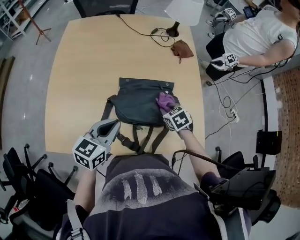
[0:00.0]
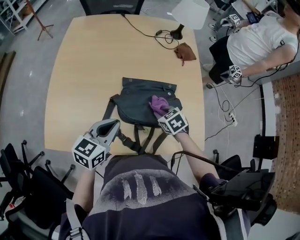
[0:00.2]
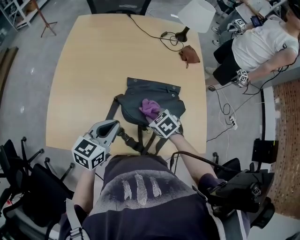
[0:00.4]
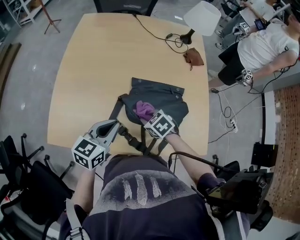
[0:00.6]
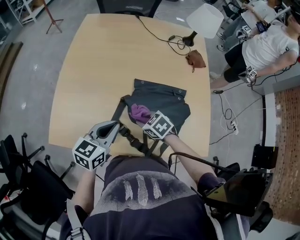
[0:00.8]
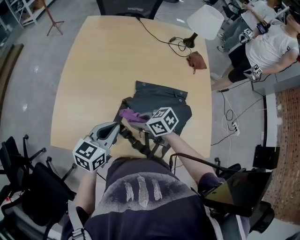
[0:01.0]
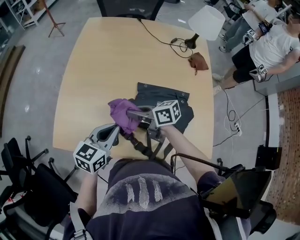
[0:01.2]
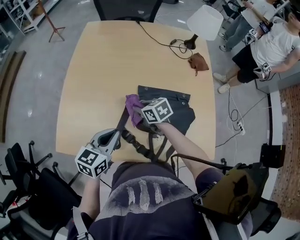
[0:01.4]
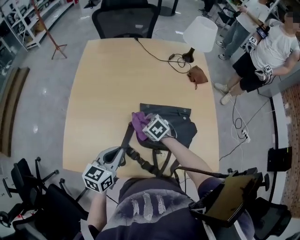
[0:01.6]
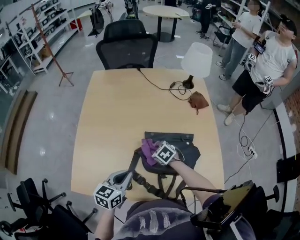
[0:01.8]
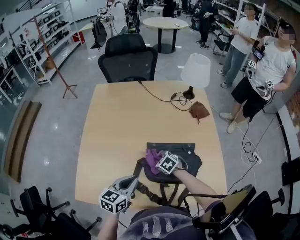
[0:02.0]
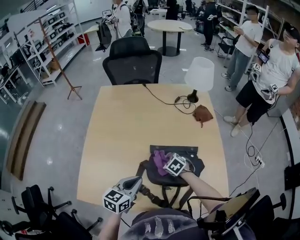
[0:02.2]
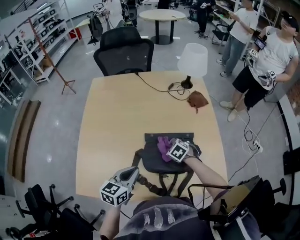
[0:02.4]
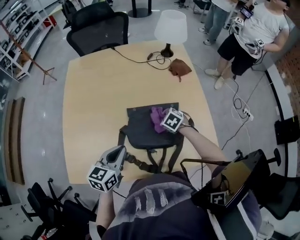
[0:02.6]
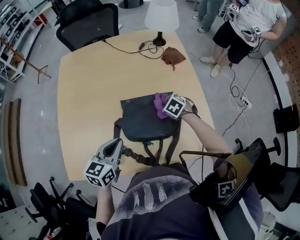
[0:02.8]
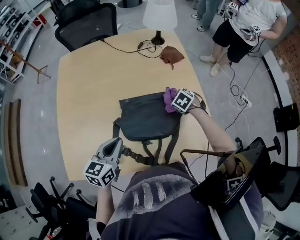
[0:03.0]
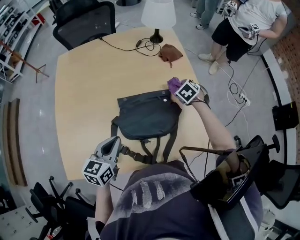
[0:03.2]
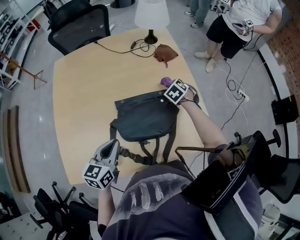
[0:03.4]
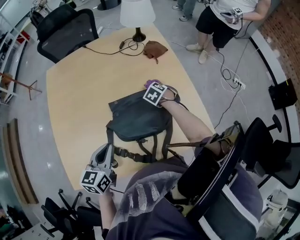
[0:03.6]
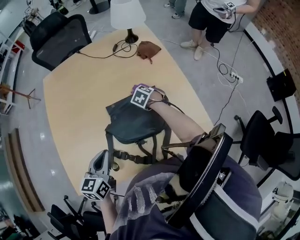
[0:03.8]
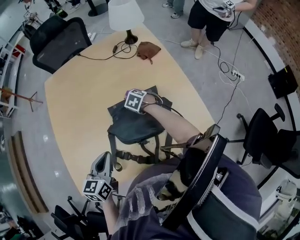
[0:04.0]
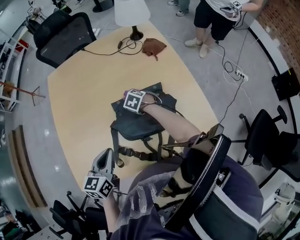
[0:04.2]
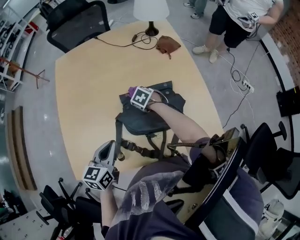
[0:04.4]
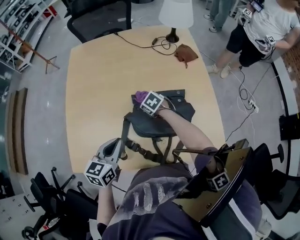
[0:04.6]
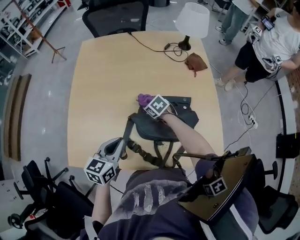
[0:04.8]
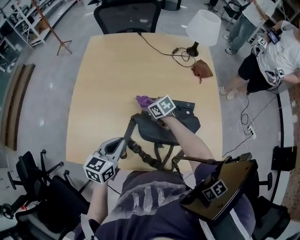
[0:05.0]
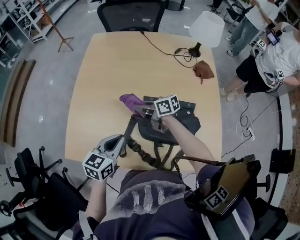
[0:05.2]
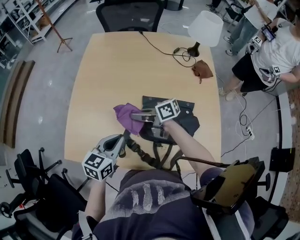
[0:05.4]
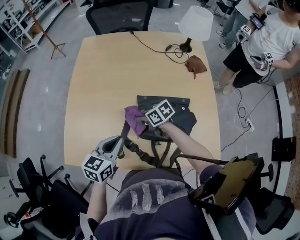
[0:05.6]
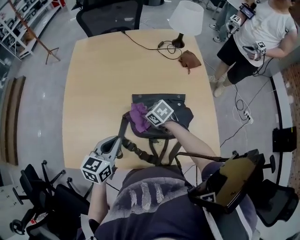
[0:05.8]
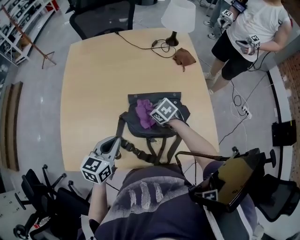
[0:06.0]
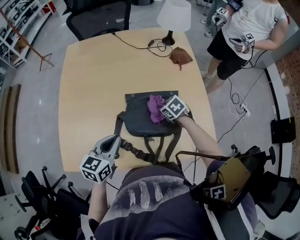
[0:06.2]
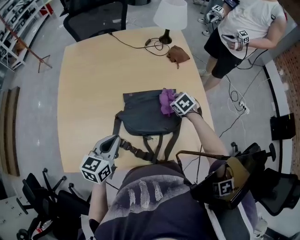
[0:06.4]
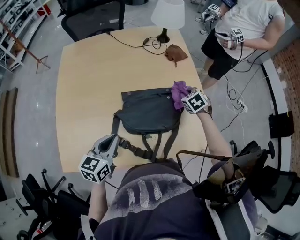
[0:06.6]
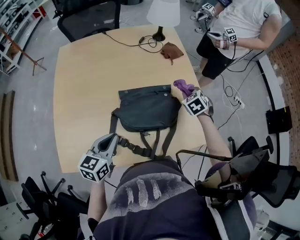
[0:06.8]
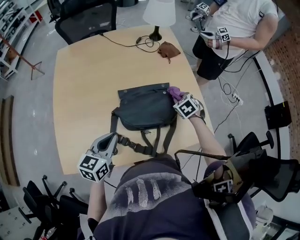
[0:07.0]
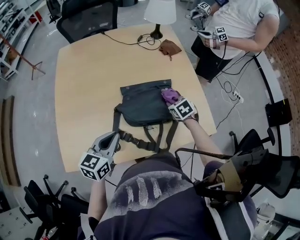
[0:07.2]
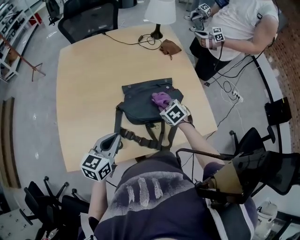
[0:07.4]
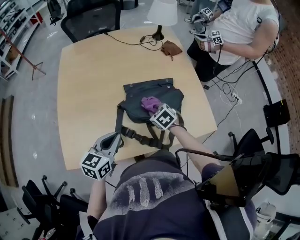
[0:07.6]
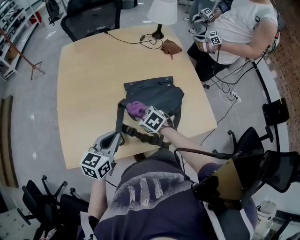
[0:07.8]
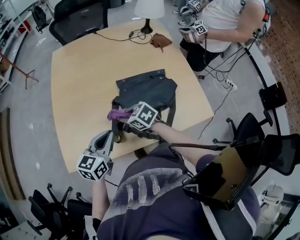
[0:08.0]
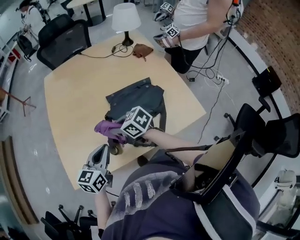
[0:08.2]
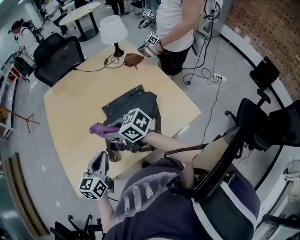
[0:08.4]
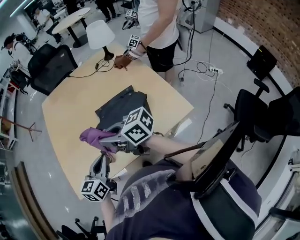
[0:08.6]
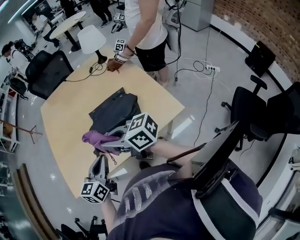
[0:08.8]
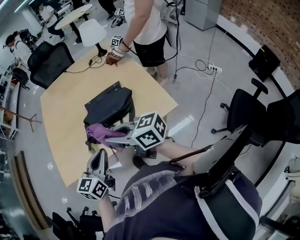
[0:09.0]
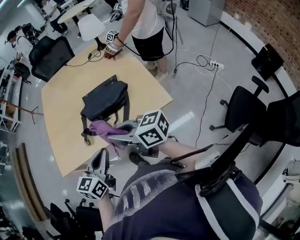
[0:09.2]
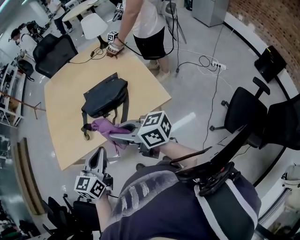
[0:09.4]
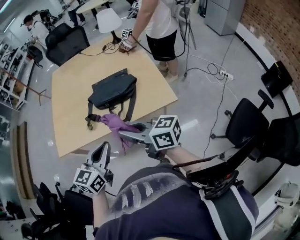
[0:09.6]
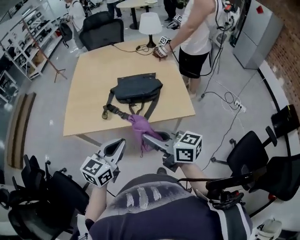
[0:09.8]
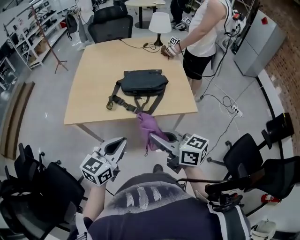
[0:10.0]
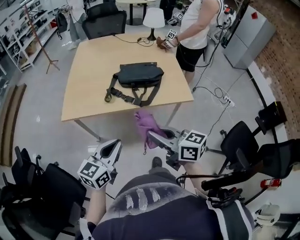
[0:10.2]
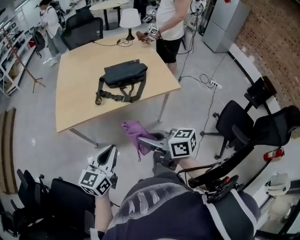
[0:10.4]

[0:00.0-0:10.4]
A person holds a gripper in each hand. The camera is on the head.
0:00.0 to 0:01.4: The right gripper reaches about 10 cm upward, then returns, and turns by roughly 30 degrees. The left gripper changes place by approximately 10 cm.
0:01.4 to 0:03.0: The right gripper changes place by roughly 30 cm, and rotates about 40 degrees. The left gripper ends up about 10 cm from where it was.
0:03.0 to 0:04.4: The right gripper ends up roughly 20 cm from where it was.
0:04.4 to 0:06.0: The right gripper is displaced backward by roughly 5 cm, and goes to the left and returns, about 15 cm each way.
0:06.0 to 0:07.4: The left gripper shifts by roughly 5 cm. Meanwhile the right gripper goes upward and returns, roughly 10 cm each way, and turns by roughly 20 degrees.
0:07.4 to 0:09.0: The right gripper shifts about 35 cm upward and backward, and tips its fingers upward by some 60 degrees. Meanwhile the left gripper moves backward, to the right and upward, about 20 cm.
0:09.0 to 0:10.4: The grippers both shift backward and to the left by some 30 cm.

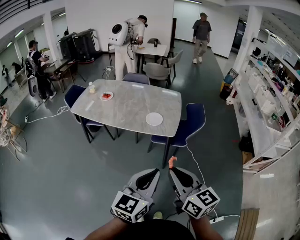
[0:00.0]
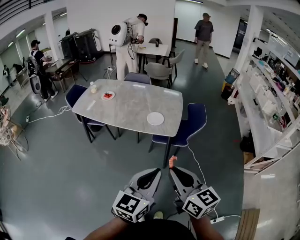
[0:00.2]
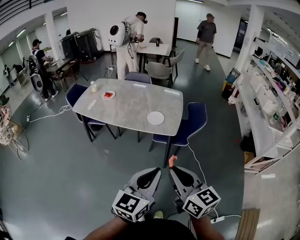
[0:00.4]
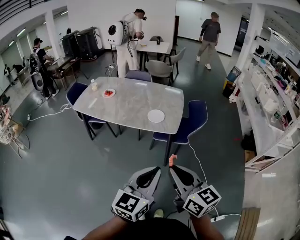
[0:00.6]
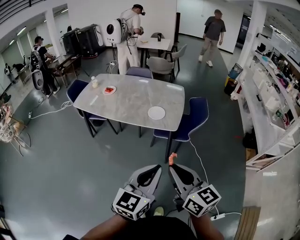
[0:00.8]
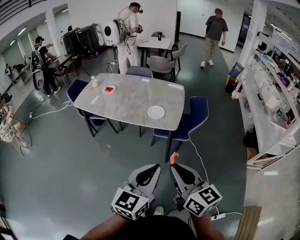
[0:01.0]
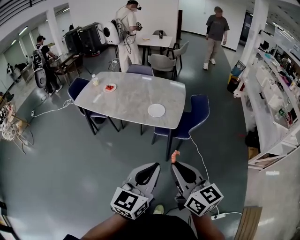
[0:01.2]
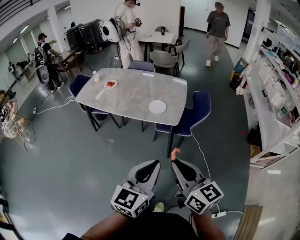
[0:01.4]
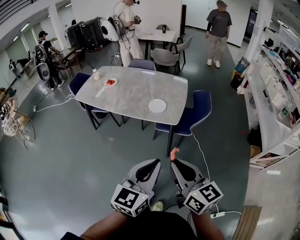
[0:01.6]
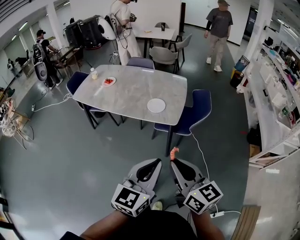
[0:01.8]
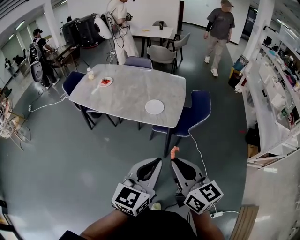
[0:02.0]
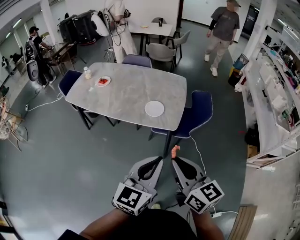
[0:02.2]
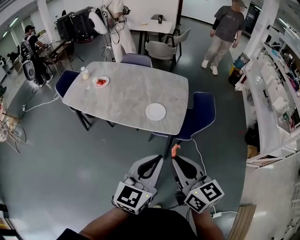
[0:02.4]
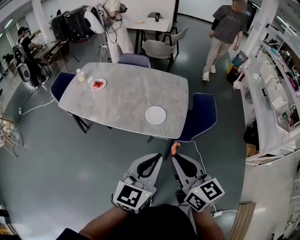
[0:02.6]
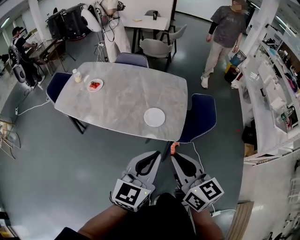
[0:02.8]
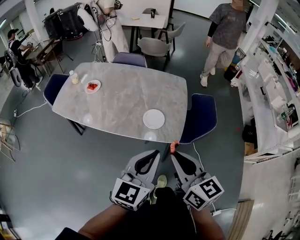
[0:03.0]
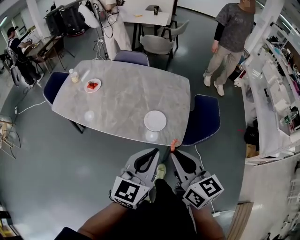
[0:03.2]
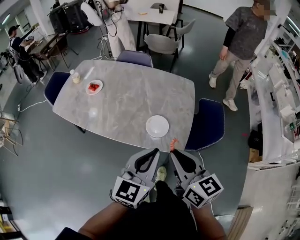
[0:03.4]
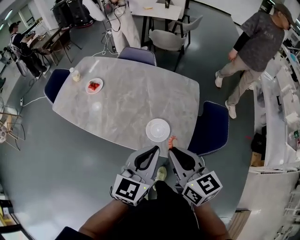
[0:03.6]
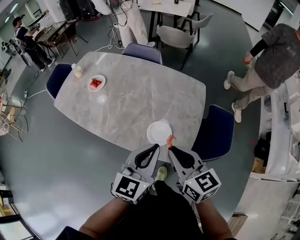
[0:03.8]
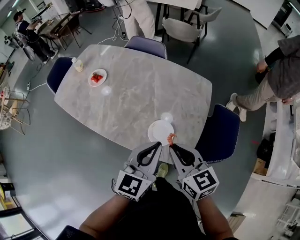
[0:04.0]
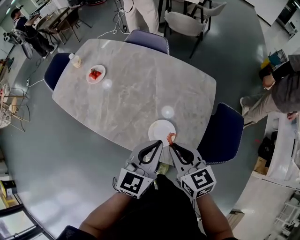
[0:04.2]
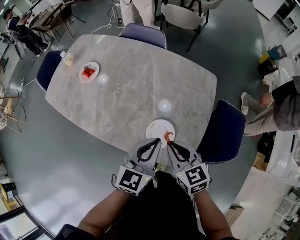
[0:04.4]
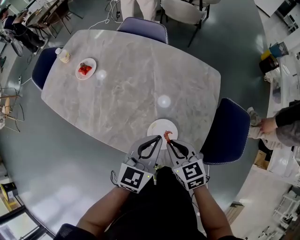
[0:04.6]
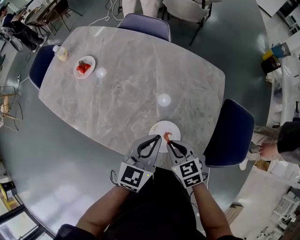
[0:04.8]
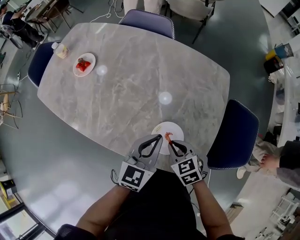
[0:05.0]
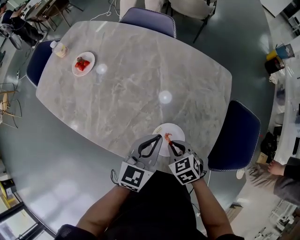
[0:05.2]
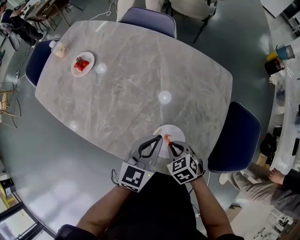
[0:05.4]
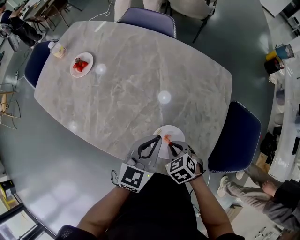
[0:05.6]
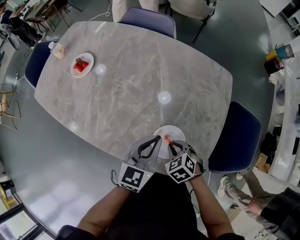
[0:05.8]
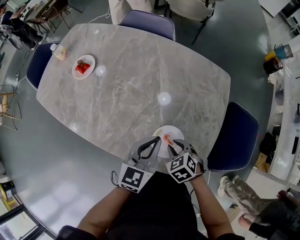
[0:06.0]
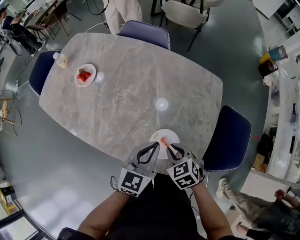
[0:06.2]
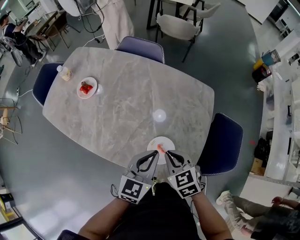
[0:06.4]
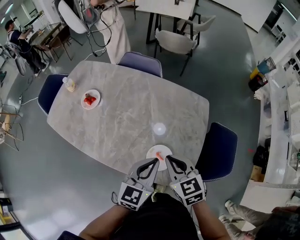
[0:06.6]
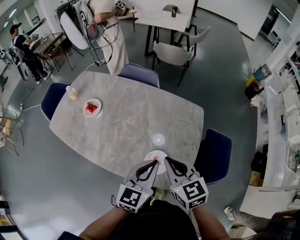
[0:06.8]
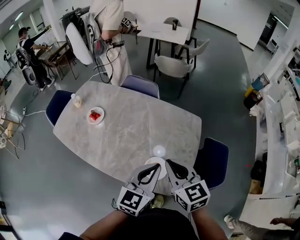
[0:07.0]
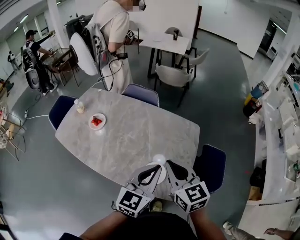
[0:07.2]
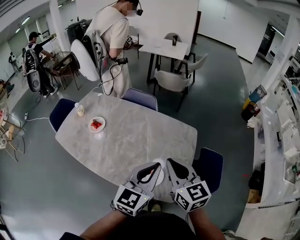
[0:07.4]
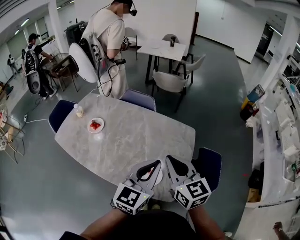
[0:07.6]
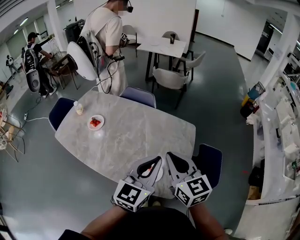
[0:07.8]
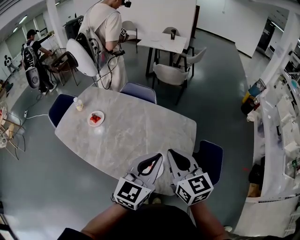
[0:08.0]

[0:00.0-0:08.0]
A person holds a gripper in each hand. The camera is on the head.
0:00.0 to 0:01.6: The grippers make only small movements.
0:01.6 to 0:03.2: Both grippers move forward, some 30 cm.
0:03.2 to 0:04.8: The right gripper travels downward and forward by approximately 40 cm, and points its fingers some 30 degrees further downward. The left gripper goes approximately 35 cm forward and downward.
0:04.8 to 0:06.4: The right gripper is displaced upward by some 10 cm. Meanwhile the left gripper moves upward, about 5 cm.
0:06.4 to 0:08.0: The two grippers go about 25 cm upward. The right gripper angles its fingers upward, by about 40 degrees.

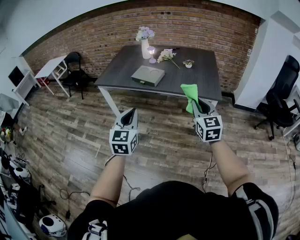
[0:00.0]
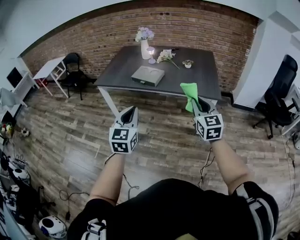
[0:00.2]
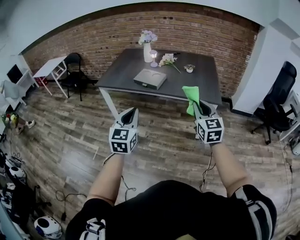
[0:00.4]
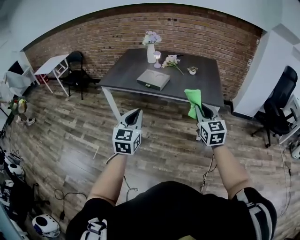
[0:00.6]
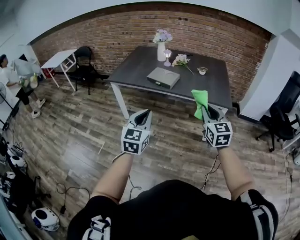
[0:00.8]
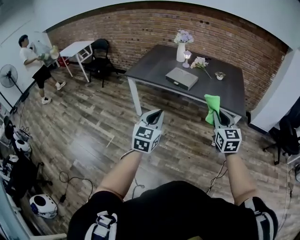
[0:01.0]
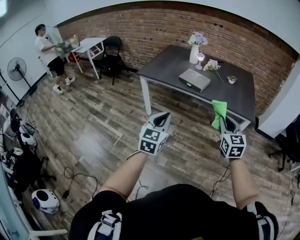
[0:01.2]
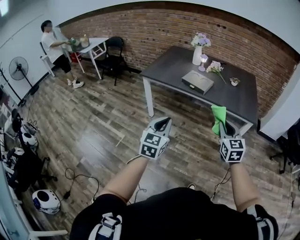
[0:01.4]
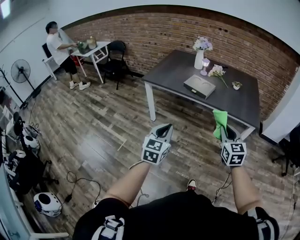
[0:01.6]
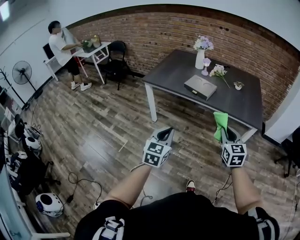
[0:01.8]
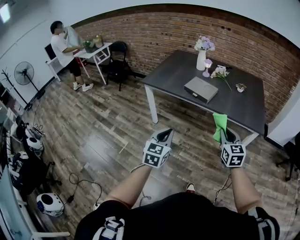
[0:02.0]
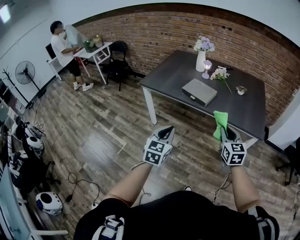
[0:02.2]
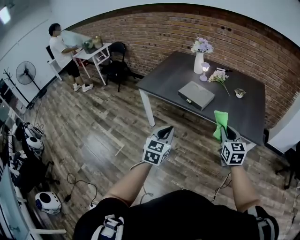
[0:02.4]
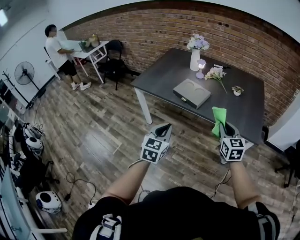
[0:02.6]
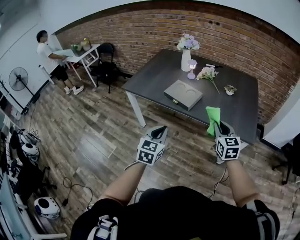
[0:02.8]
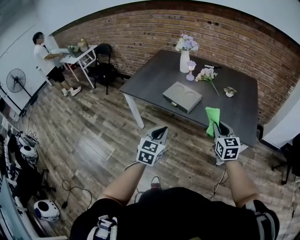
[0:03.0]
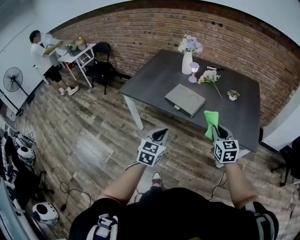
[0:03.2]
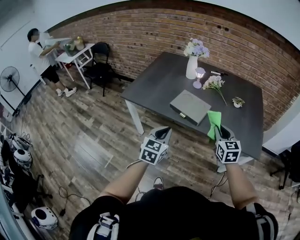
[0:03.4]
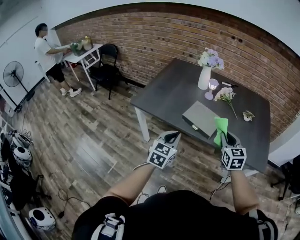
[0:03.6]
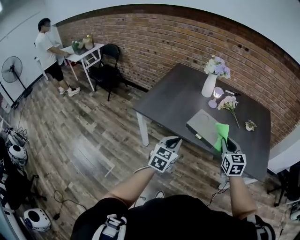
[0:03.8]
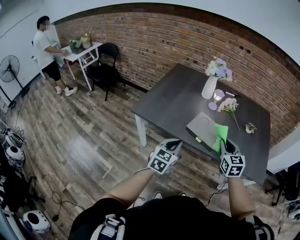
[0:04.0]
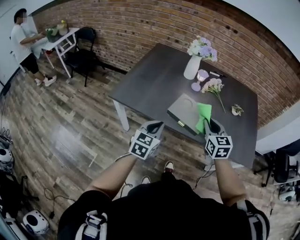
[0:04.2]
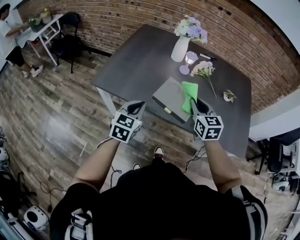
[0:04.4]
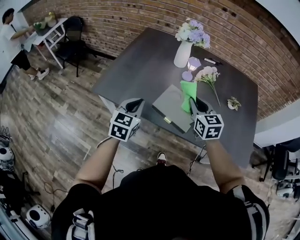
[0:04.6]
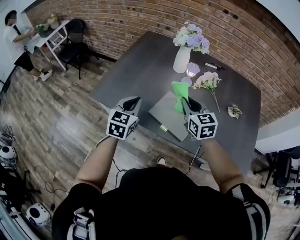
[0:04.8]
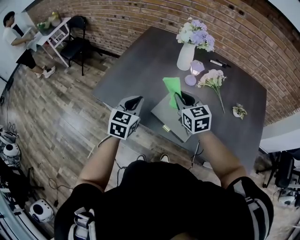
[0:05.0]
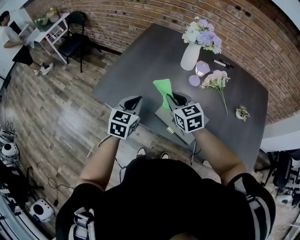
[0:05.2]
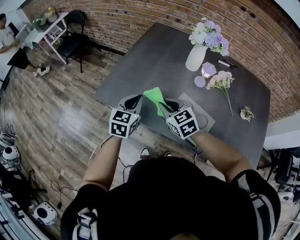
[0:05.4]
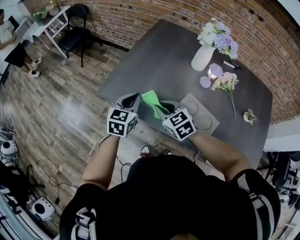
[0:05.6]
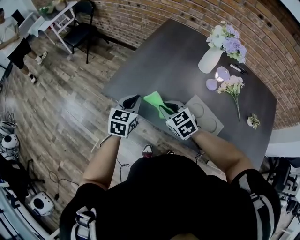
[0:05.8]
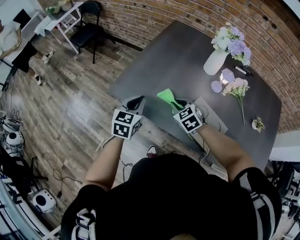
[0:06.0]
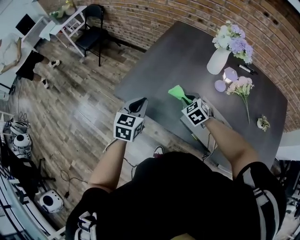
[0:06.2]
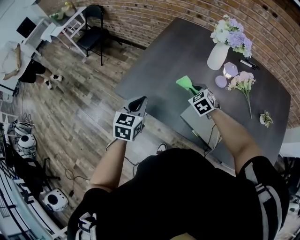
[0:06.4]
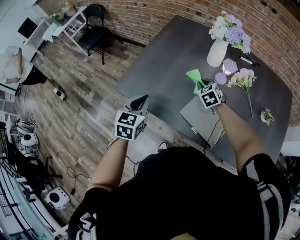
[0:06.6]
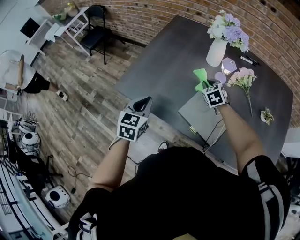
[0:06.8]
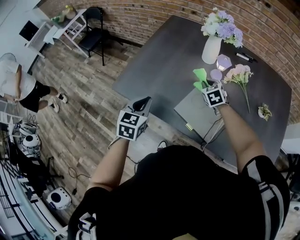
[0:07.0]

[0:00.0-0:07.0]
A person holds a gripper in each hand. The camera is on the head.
0:00.0 to 0:01.4: Both grippers travel together to the left, about 15 cm.
0:01.4 to 0:02.8: The two grippers go approximately 25 cm forward and to the right.
0:02.8 to 0:04.2: The grippers both shift forward and to the left by some 30 cm.
0:04.2 to 0:05.6: The right gripper shifts by roughly 30 cm, and swivels roughly 40 degrees. The left gripper ends up approximately 25 cm from where it was.
0:05.6 to 0:07.0: The right gripper travels to the right and forward by some 25 cm, and turns by approximately 20 degrees, while the left gripper moves backward, about 5 cm.
